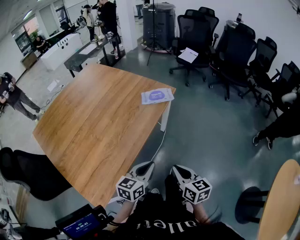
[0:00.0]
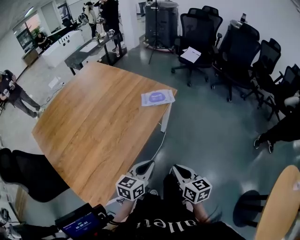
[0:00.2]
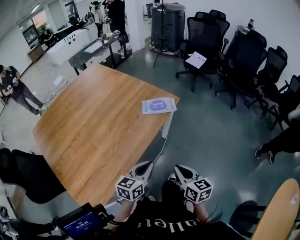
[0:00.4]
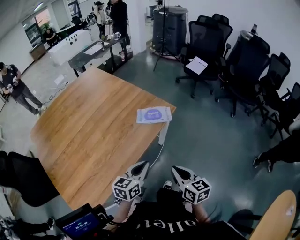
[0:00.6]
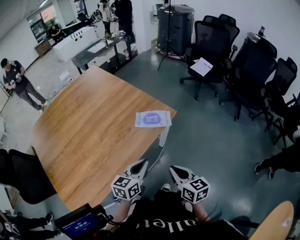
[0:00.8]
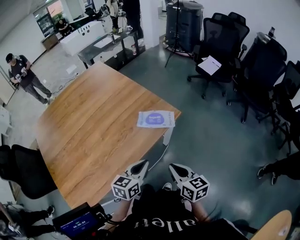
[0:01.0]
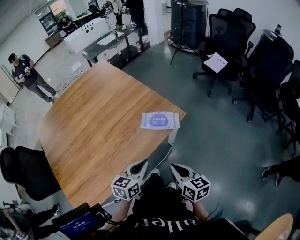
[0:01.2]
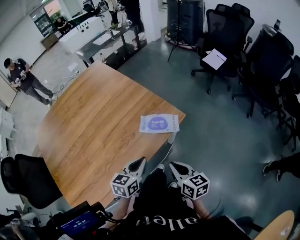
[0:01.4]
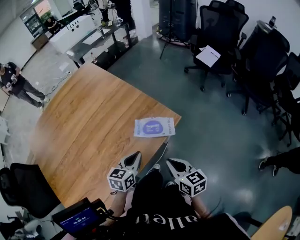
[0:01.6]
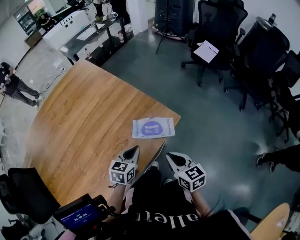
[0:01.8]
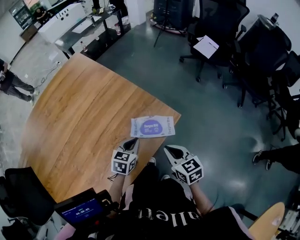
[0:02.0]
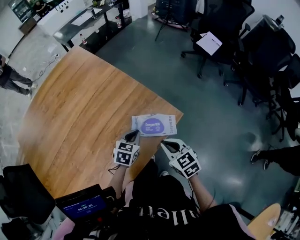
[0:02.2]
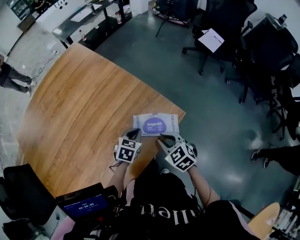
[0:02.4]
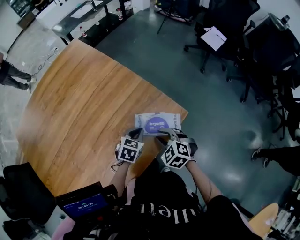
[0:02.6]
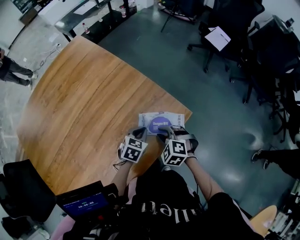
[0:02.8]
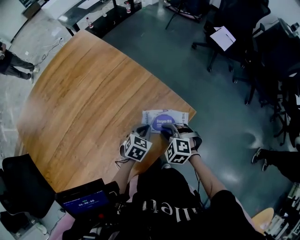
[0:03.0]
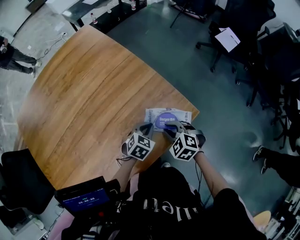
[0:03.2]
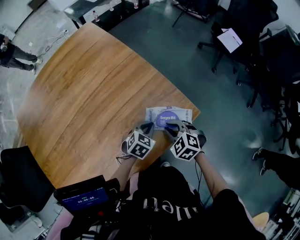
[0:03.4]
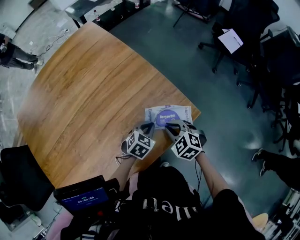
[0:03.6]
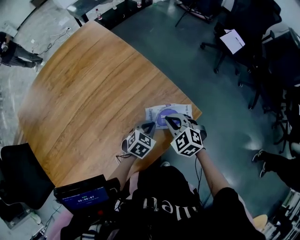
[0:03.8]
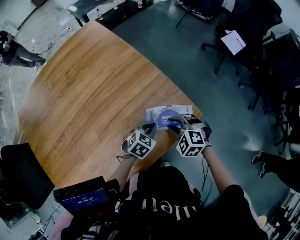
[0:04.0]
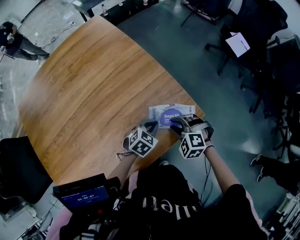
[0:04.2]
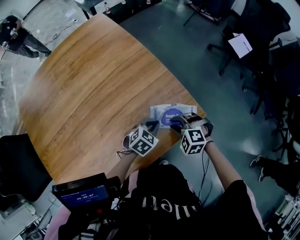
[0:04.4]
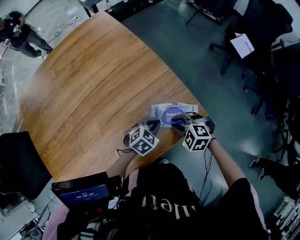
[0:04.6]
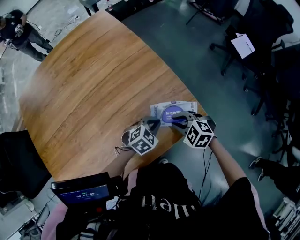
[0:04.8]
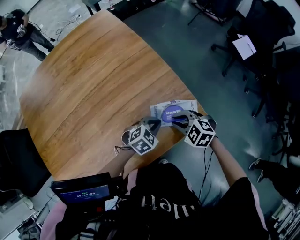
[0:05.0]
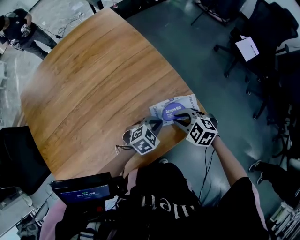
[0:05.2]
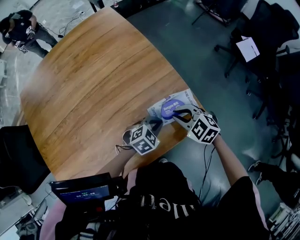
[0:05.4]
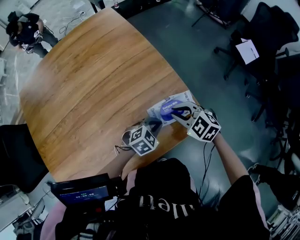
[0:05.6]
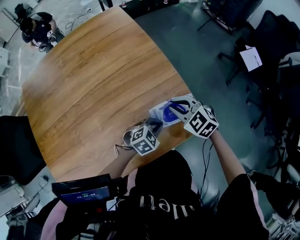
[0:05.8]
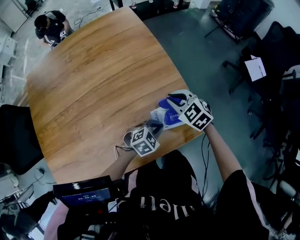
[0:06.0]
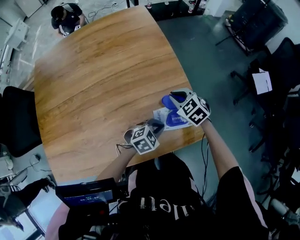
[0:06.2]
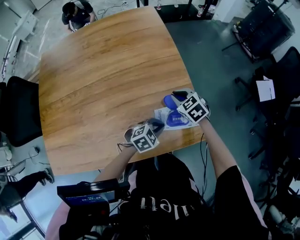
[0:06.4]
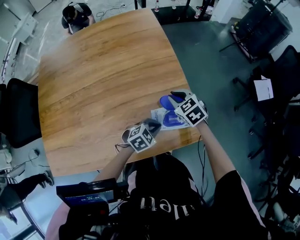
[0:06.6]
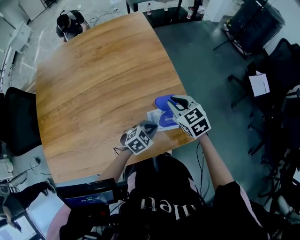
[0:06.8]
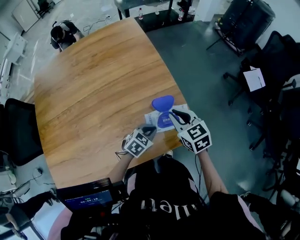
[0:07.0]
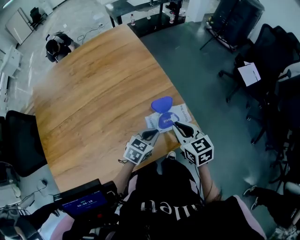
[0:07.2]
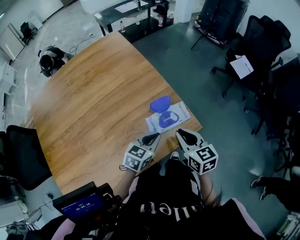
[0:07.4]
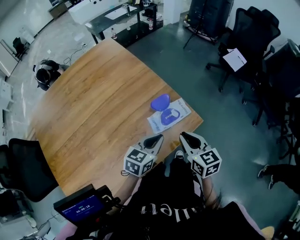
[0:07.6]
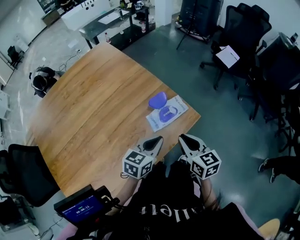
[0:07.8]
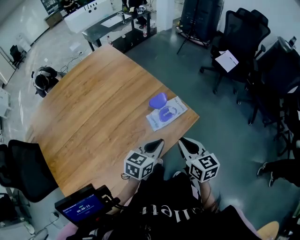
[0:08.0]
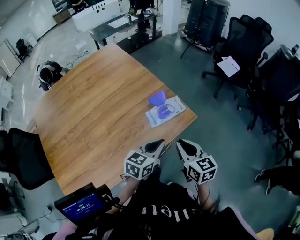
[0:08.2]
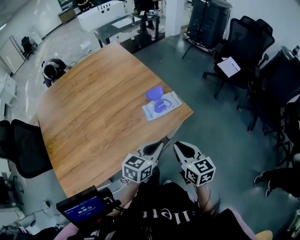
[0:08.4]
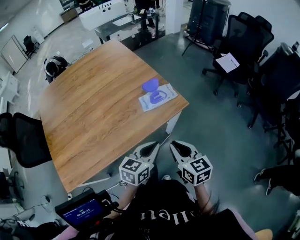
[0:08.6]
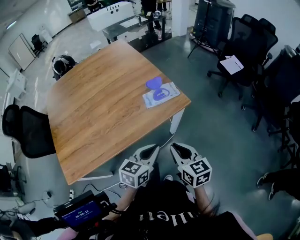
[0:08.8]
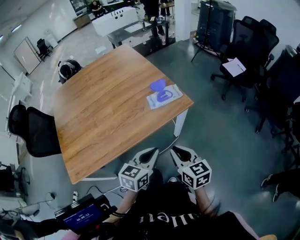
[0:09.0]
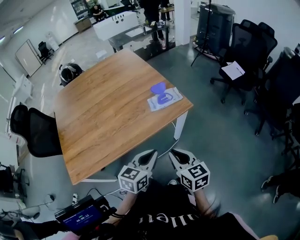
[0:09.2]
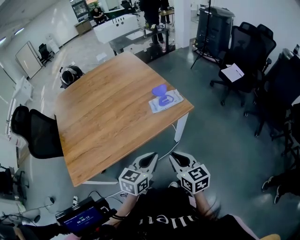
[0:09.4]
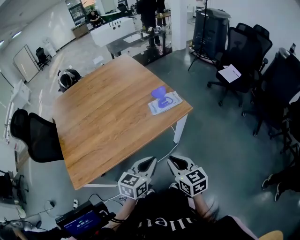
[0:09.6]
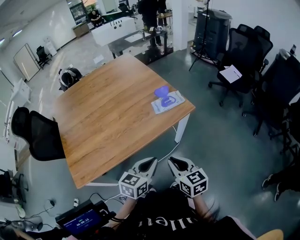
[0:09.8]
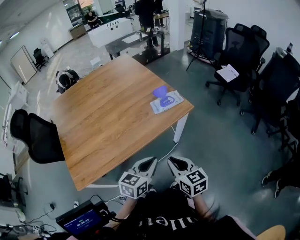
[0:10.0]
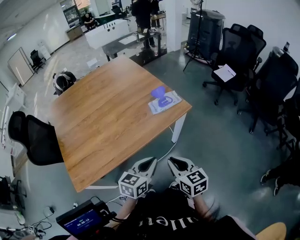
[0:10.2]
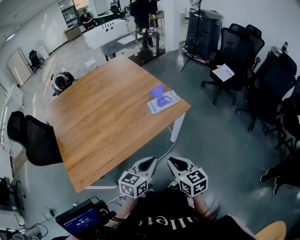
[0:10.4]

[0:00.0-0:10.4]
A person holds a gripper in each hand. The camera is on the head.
0:00.0 to 0:01.4: The two grippers go approximately 30 cm forward.
0:01.4 to 0:03.0: Both grippers move forward and downward, some 25 cm. The right gripper rolls counterclockwise, seen from behind, by roughly 70 degrees, while the left gripper changes its angle by about 30 degrees.
0:03.0 to 0:04.4: The right gripper changes its angle by some 20 degrees.
0:04.4 to 0:06.0: The right gripper heads forward and upward, covering some 20 cm, and rotates some 30 degrees.
0:06.0 to 0:07.4: The right gripper heads backward, upward and to the right, covering approximately 20 cm, and rotates around the line of its fingers by roughly 40 degrees, clockwise from behind, while the left gripper travels upward by some 15 cm, and swivels about 30 degrees.
0:07.4 to 0:09.0: The grippers both shift backward by some 30 cm.
0:09.0 to 0:10.4: The left gripper heads backward, covering approximately 5 cm. The right gripper travels backward and to the left by approximately 10 cm.

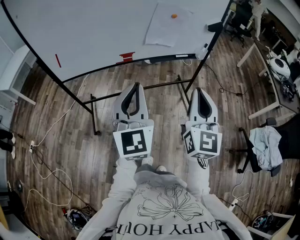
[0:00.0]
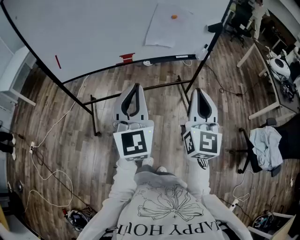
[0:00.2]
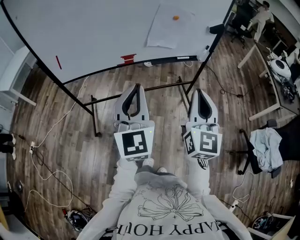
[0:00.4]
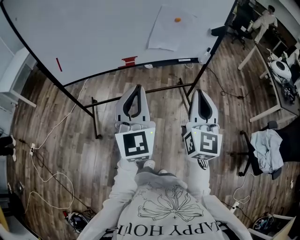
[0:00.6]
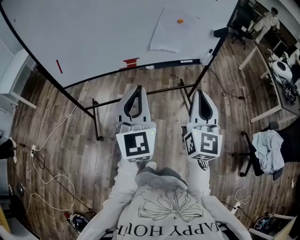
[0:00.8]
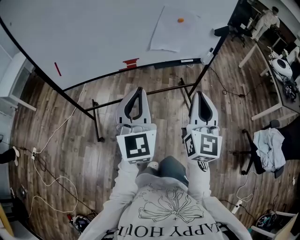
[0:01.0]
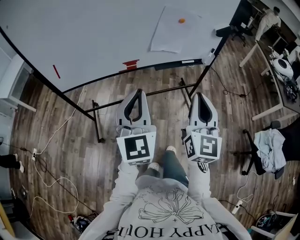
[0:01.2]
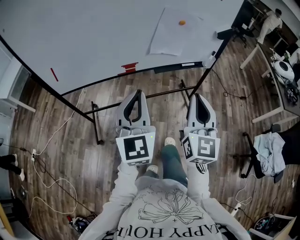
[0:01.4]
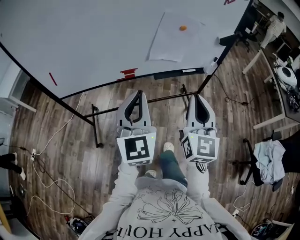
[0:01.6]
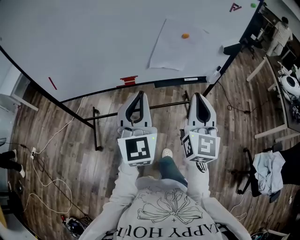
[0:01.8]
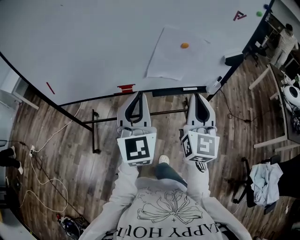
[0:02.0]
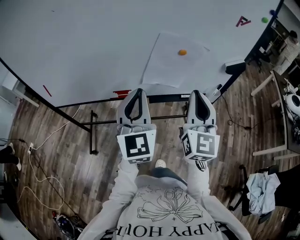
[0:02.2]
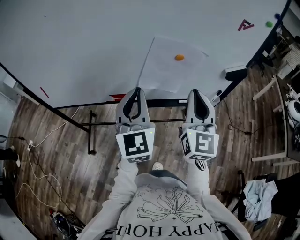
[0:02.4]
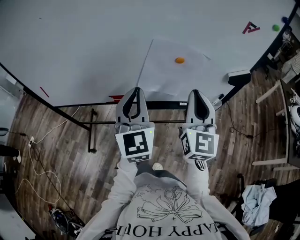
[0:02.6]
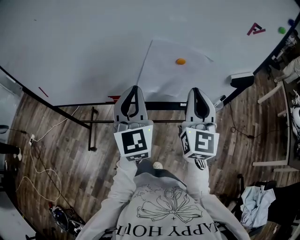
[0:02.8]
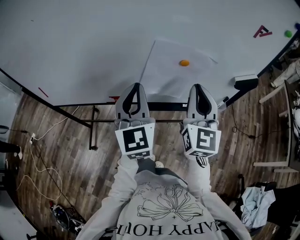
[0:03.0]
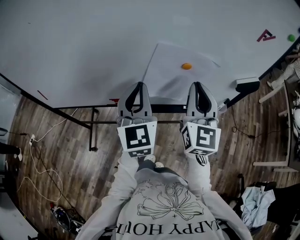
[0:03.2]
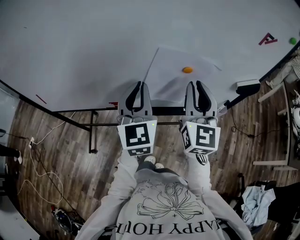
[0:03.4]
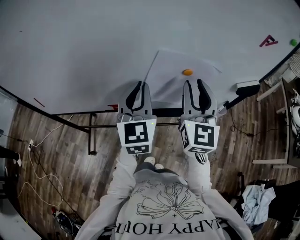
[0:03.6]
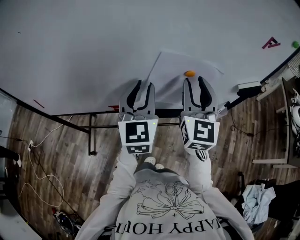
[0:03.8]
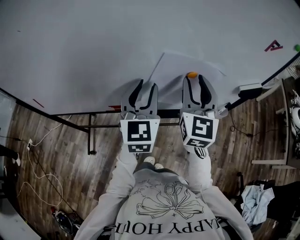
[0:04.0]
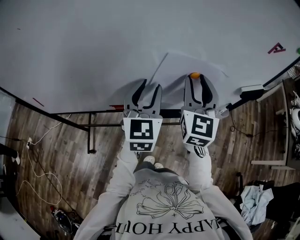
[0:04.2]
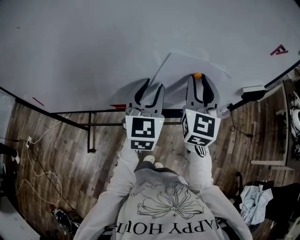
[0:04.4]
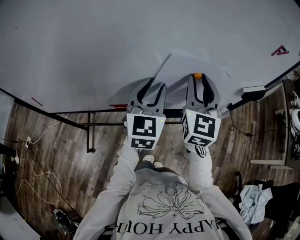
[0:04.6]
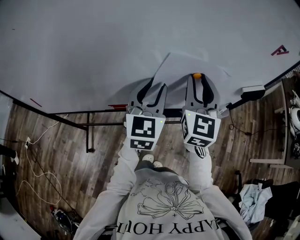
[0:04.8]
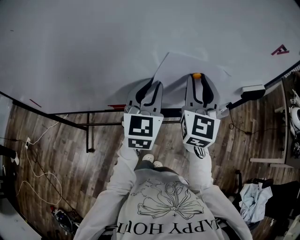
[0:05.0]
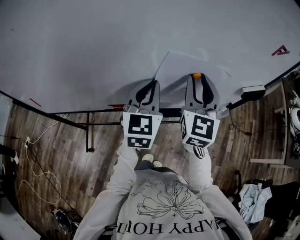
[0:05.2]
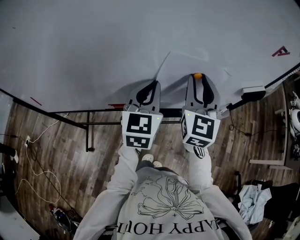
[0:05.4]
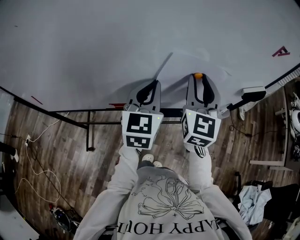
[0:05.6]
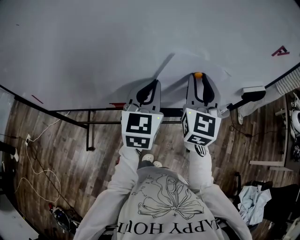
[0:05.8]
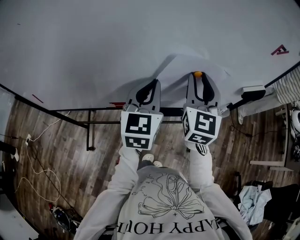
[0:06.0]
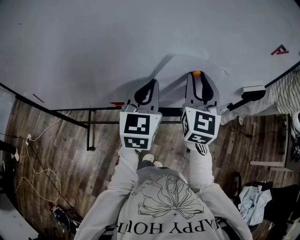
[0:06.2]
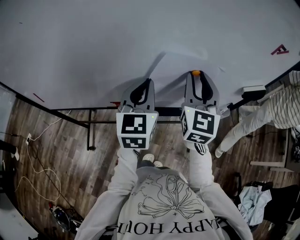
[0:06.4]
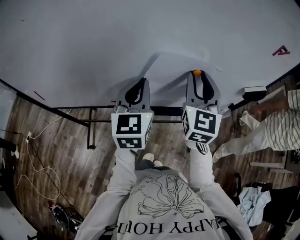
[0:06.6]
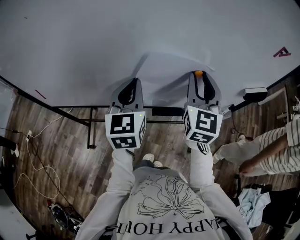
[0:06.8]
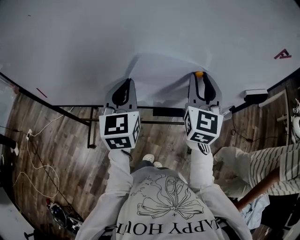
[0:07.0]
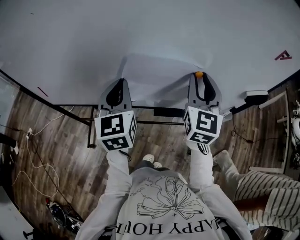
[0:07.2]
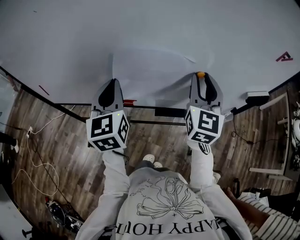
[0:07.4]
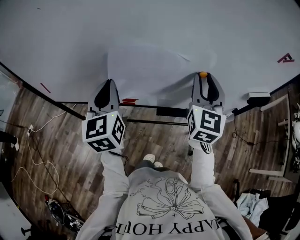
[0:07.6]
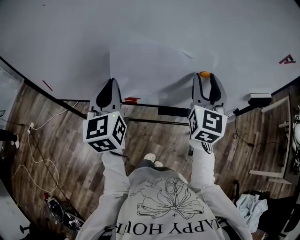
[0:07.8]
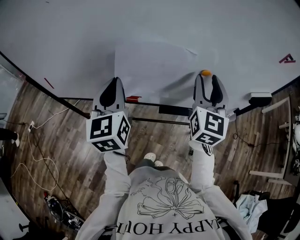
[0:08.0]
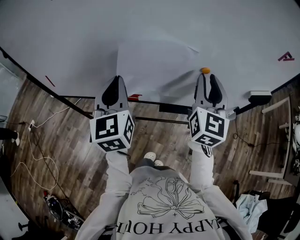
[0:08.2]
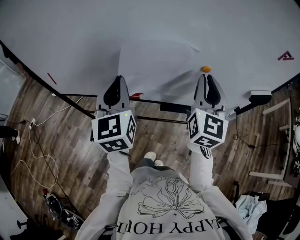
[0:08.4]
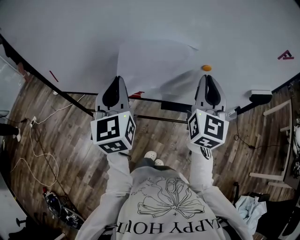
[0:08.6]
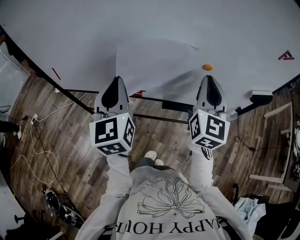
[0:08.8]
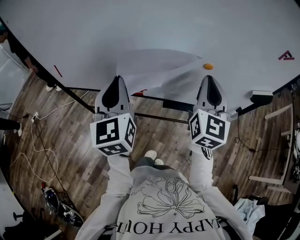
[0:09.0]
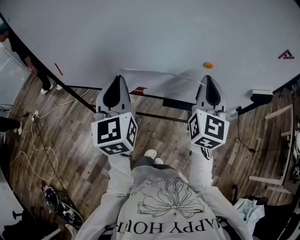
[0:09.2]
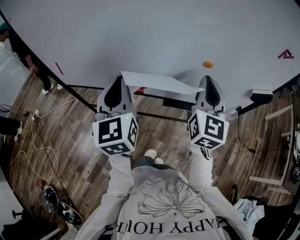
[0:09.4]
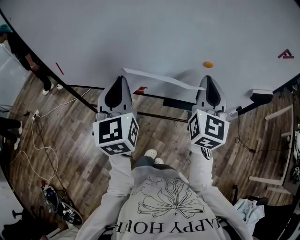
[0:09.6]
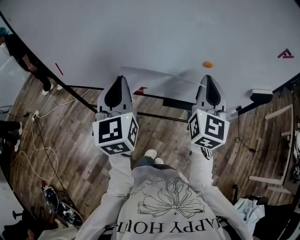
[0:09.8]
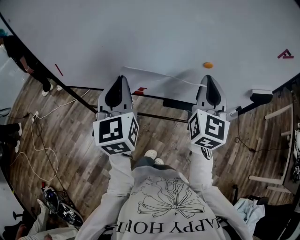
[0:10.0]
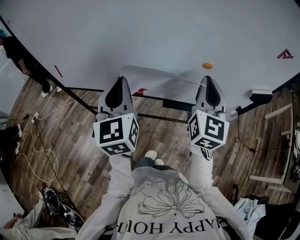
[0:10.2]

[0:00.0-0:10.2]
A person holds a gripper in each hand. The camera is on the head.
0:00.0 to 0:01.4: The grippers both shift forward by about 10 cm.
0:01.4 to 0:03.0: The right gripper shifts approximately 35 cm forward; the left gripper heads forward and to the right, covering approximately 30 cm.
0:03.0 to 0:04.4: Both grippers move forward, about 10 cm. The left gripper opens up. Meanwhile the right gripper opens up.
0:04.4 to 0:05.8: The left gripper closes.
0:05.8 to 0:07.2: The left gripper is displaced to the left by about 10 cm.
0:07.2 to 0:08.8: Both grippers travel together backward, some 5 cm. The right gripper closes up.
0:08.8 to 0:10.2: The grippers make only small movements.

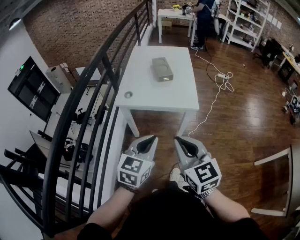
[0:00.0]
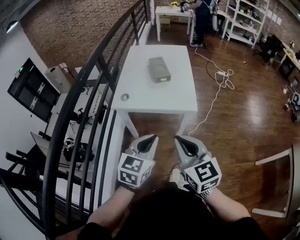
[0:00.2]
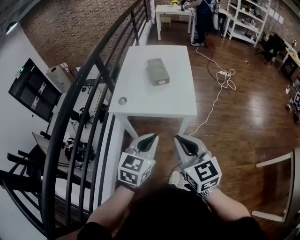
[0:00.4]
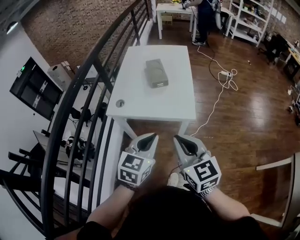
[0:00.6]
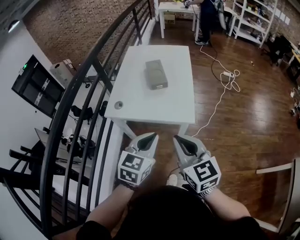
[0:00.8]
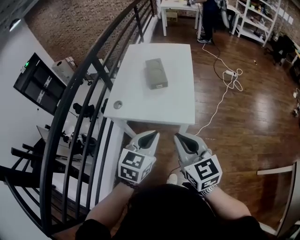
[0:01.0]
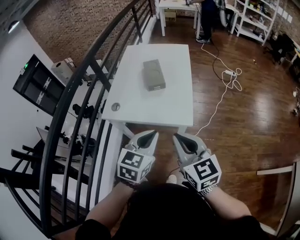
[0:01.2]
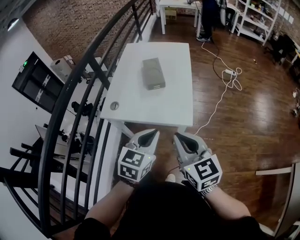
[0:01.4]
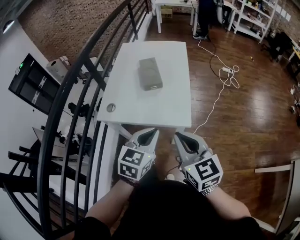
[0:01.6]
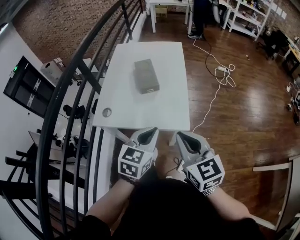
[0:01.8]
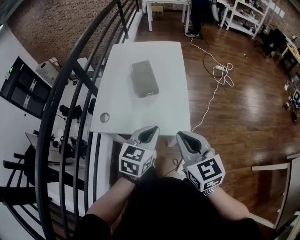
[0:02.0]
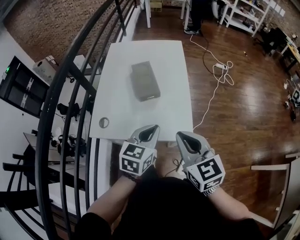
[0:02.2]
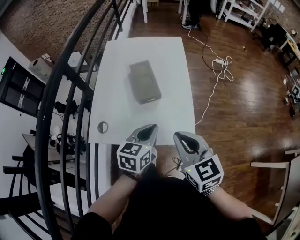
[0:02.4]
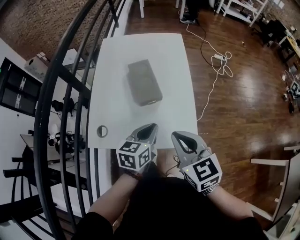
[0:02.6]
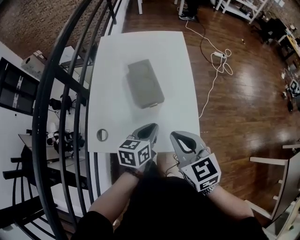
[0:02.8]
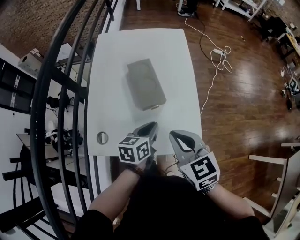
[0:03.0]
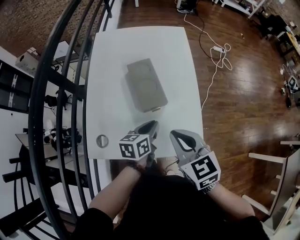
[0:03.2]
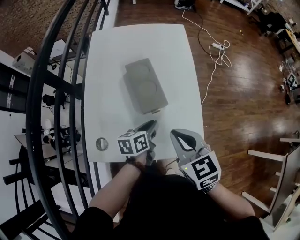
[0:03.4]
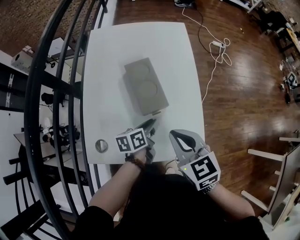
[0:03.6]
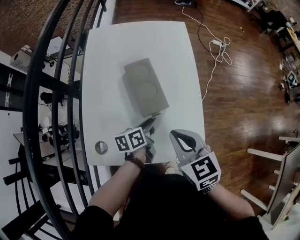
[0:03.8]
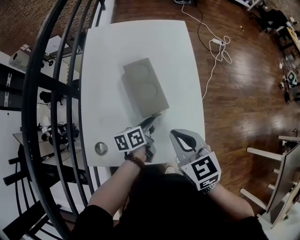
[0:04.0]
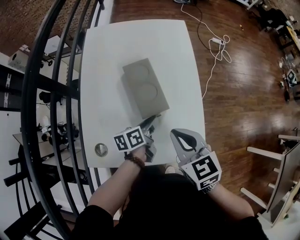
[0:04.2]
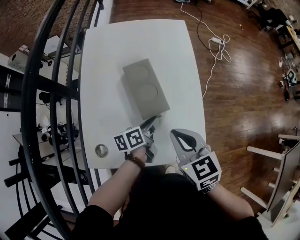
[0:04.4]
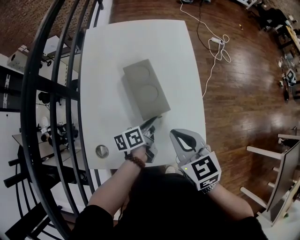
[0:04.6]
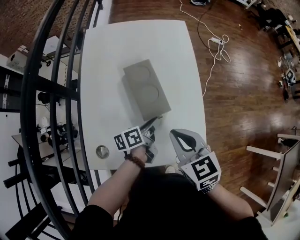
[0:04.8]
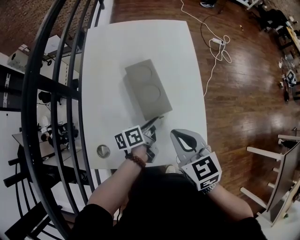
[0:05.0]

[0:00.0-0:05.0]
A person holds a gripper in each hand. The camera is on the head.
0:00.0 to 0:01.6: The grippers both shift forward and to the right by approximately 20 cm.
0:01.6 to 0:03.4: The right gripper goes some 20 cm forward and to the left, while the left gripper goes some 25 cm forward and downward, and rotates around the line of its fingers by roughly 40 degrees, counterclockwise from behind.
0:03.4 to 0:05.0: The left gripper changes its angle by some 20 degrees.
